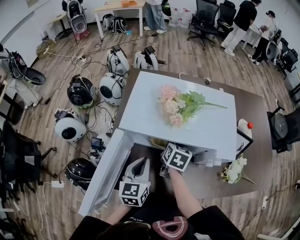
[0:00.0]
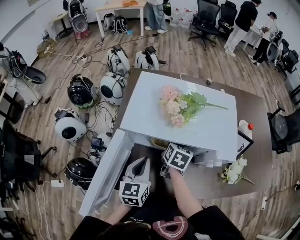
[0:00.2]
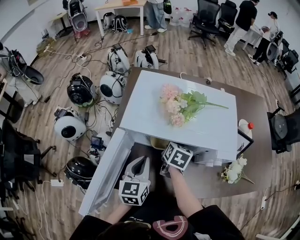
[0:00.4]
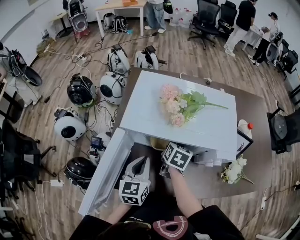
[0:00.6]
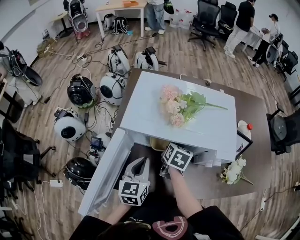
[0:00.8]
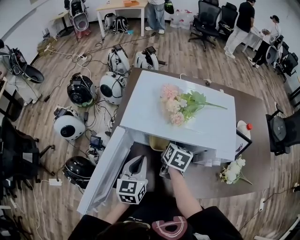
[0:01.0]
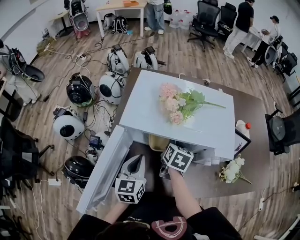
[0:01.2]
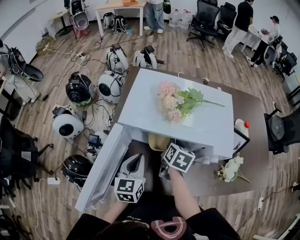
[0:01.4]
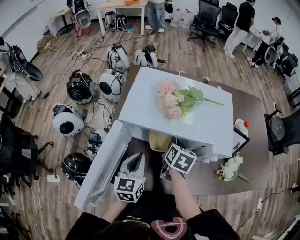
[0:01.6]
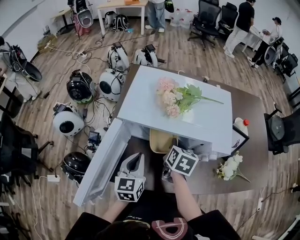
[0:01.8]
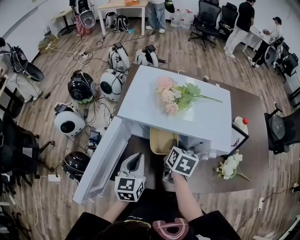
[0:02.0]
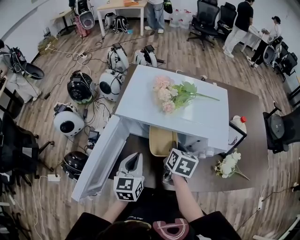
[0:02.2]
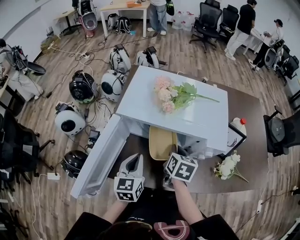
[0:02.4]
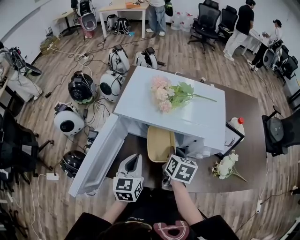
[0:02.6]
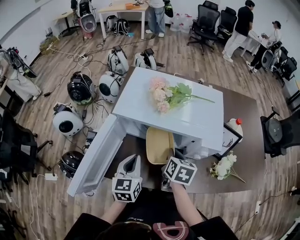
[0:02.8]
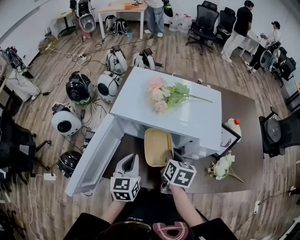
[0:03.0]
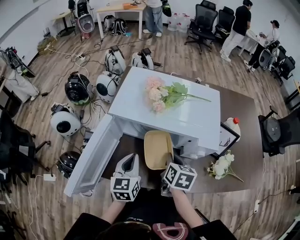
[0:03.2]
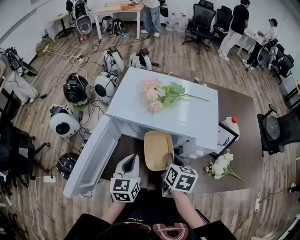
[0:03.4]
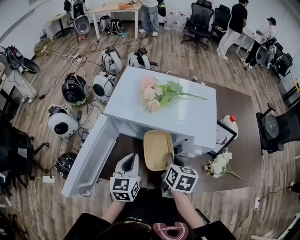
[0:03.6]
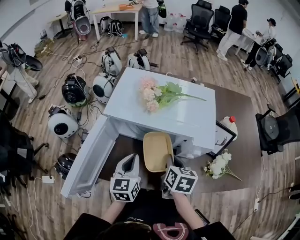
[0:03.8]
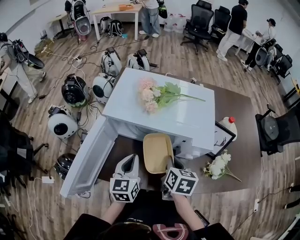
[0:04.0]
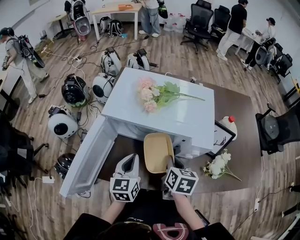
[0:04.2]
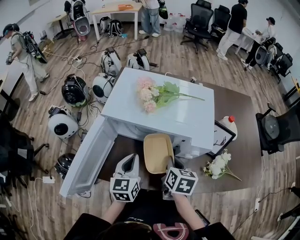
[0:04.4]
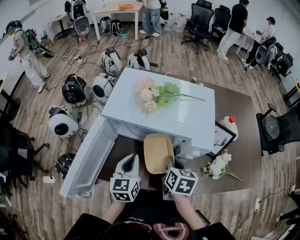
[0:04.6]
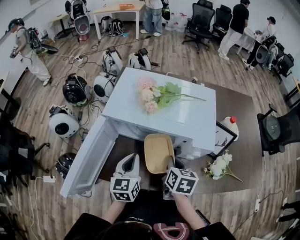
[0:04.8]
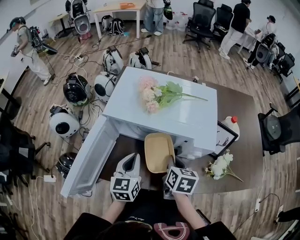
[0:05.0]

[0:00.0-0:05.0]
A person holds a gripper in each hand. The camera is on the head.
0:00.0 to 0:01.6: The grippers stay close to where they were, moving slightly.
0:01.6 to 0:03.4: The right gripper shifts roughly 10 cm backward and to the right.
0:03.4 to 0:05.0: The grippers stay close to where they were, moving slightly.

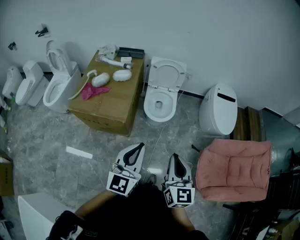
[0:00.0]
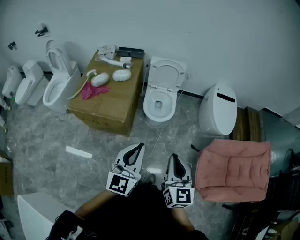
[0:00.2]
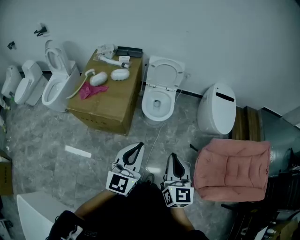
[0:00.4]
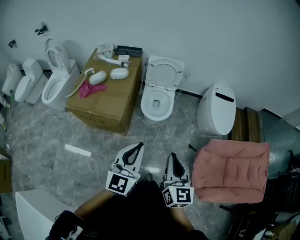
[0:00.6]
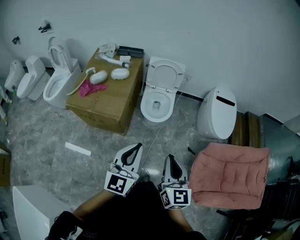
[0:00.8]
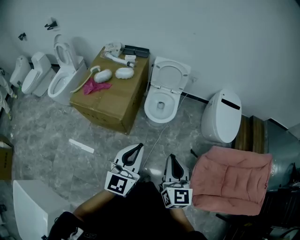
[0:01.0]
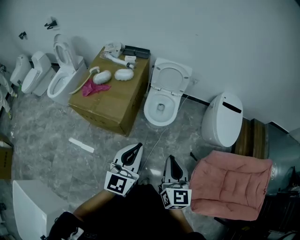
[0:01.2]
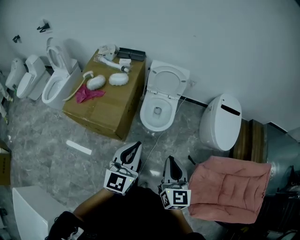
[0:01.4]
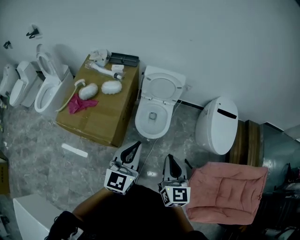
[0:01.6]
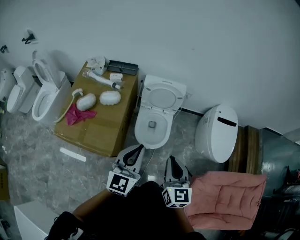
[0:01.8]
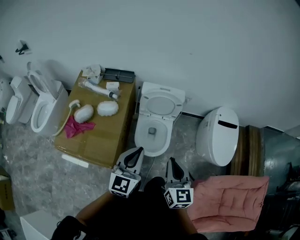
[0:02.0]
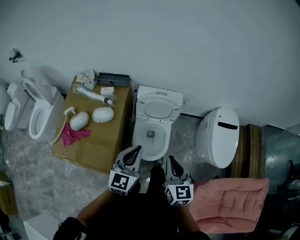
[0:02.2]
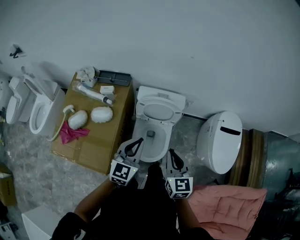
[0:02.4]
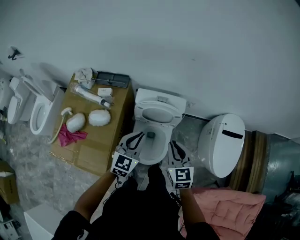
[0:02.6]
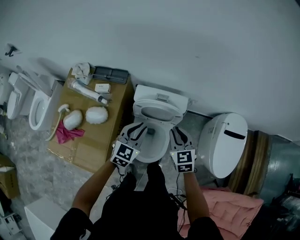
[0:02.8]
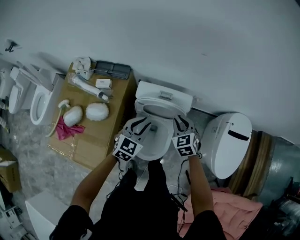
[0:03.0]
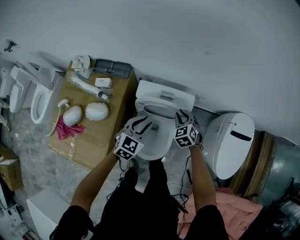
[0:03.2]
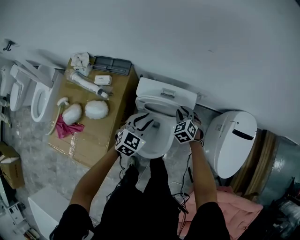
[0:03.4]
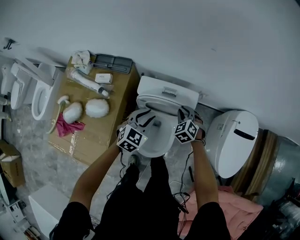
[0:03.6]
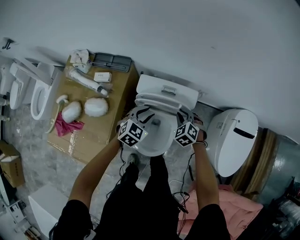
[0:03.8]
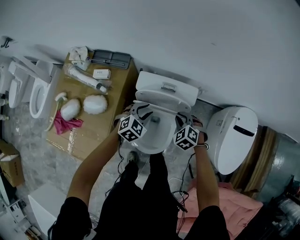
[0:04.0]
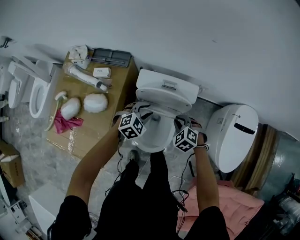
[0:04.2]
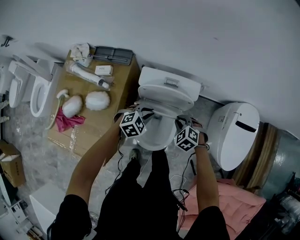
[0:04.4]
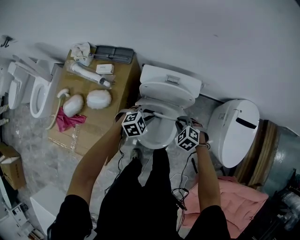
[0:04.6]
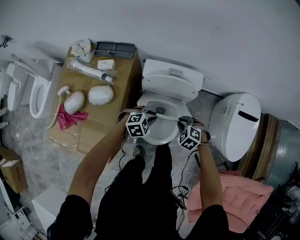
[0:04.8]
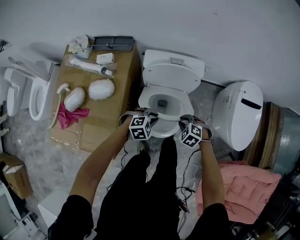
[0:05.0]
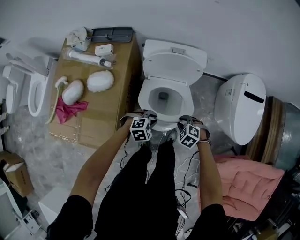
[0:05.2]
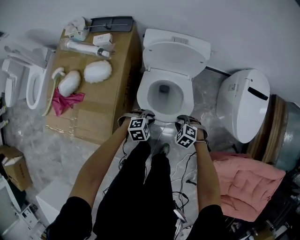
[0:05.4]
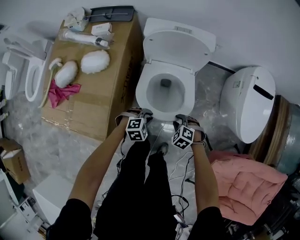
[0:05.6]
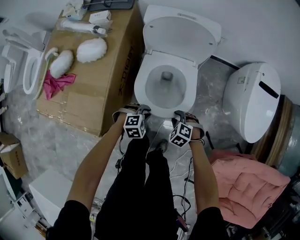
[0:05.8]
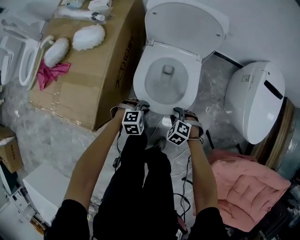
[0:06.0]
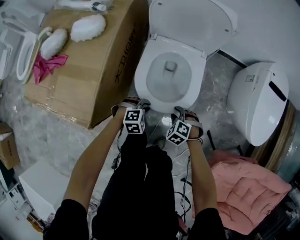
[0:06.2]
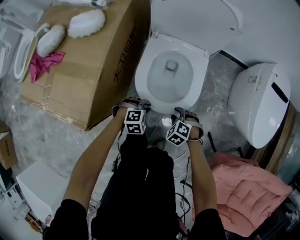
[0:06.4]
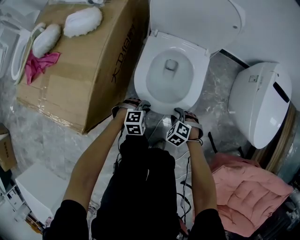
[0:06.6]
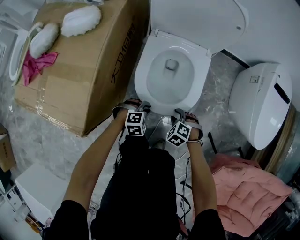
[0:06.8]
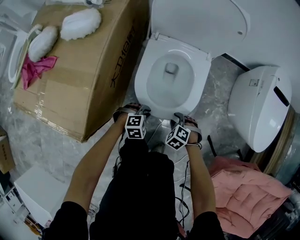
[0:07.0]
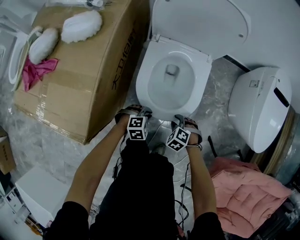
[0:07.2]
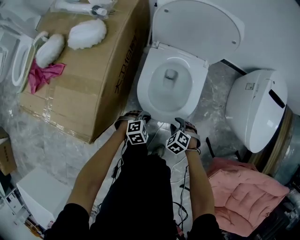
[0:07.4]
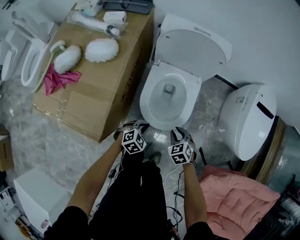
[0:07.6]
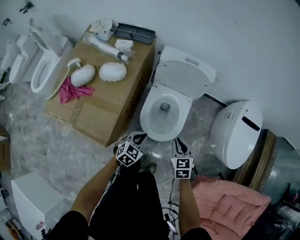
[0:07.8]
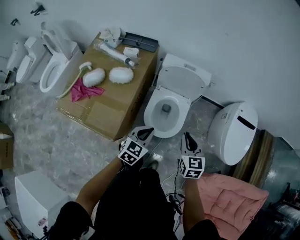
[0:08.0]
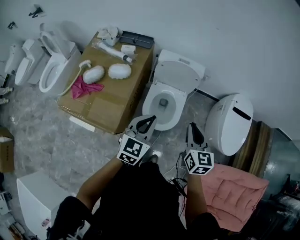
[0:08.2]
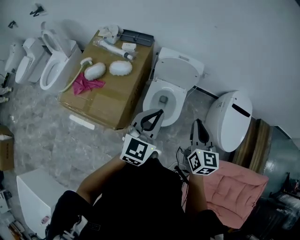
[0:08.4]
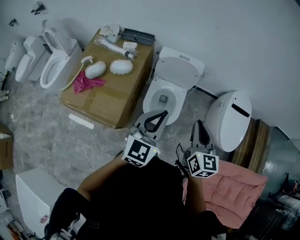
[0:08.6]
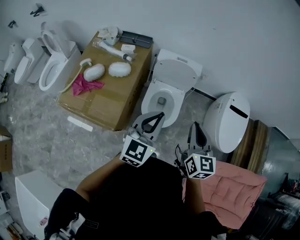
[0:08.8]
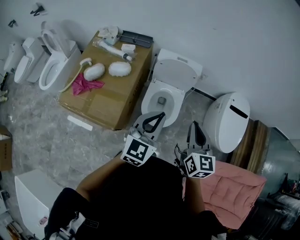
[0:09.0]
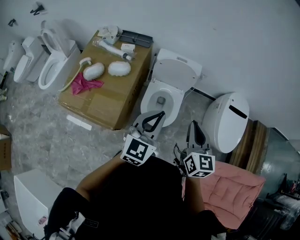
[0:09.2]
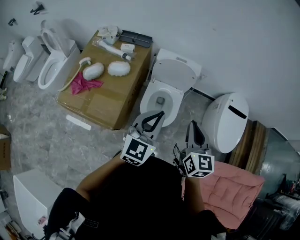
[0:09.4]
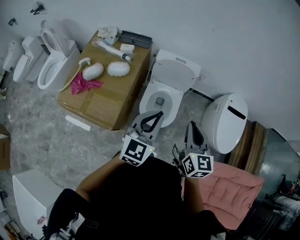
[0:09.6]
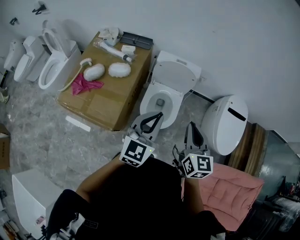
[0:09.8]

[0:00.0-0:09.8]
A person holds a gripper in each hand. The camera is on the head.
0:00.0 to 0:01.4: The grippers both shift forward and to the right by about 15 cm.
0:01.4 to 0:02.8: The two grippers travel together, forward, some 60 cm. The right gripper rotates some 30 degrees. Meanwhile the left gripper swivels approximately 20 degrees.
0:02.8 to 0:04.2: Both grippers move downward, roughly 20 cm. The right gripper changes its angle by approximately 40 degrees, while the left gripper rotates roughly 30 degrees, and opens its fingers.
0:04.2 to 0:05.6: The right gripper moves approximately 35 cm; the left gripper changes place by some 35 cm, and changes its angle by about 20 degrees.
0:05.6 to 0:07.0: Both grippers travel together downward, approximately 20 cm.
0:07.0 to 0:08.4: Both grippers travel together upward, roughly 70 cm. The right gripper tilts its fingers roughly 60 degrees upward, and closes up. The left gripper tilts its fingers approximately 50 degrees upward.
0:08.4 to 0:09.8: There are only small adjustments of the grippers.

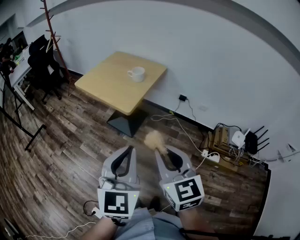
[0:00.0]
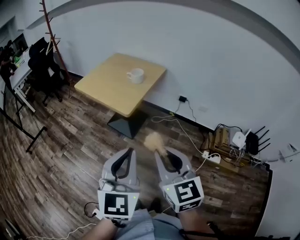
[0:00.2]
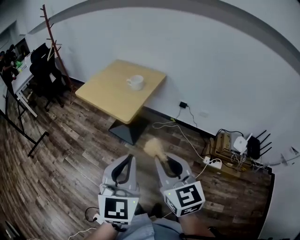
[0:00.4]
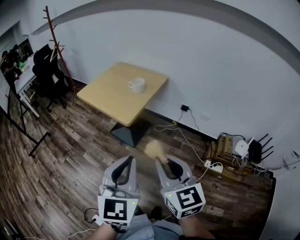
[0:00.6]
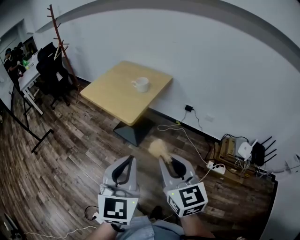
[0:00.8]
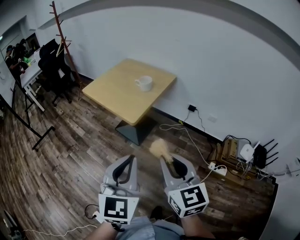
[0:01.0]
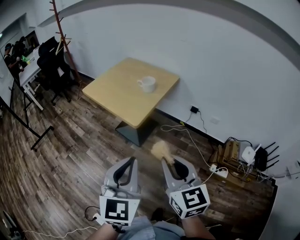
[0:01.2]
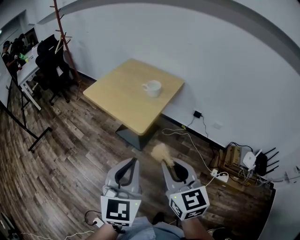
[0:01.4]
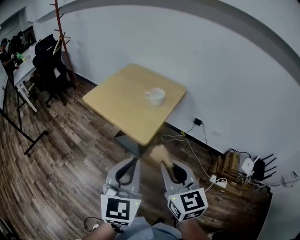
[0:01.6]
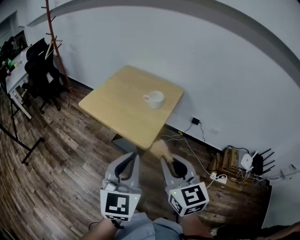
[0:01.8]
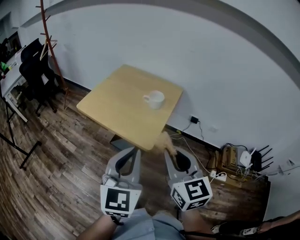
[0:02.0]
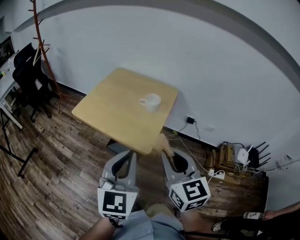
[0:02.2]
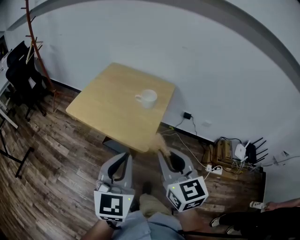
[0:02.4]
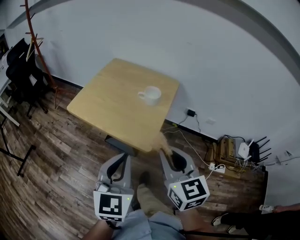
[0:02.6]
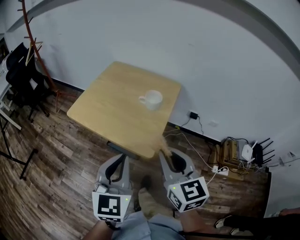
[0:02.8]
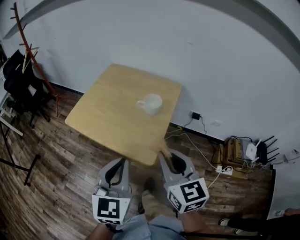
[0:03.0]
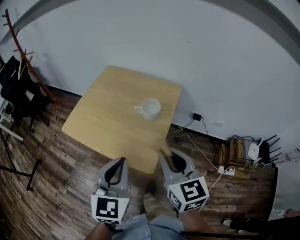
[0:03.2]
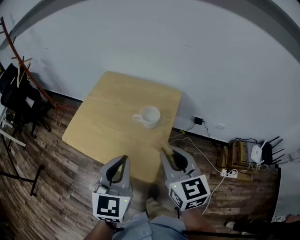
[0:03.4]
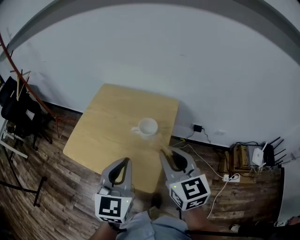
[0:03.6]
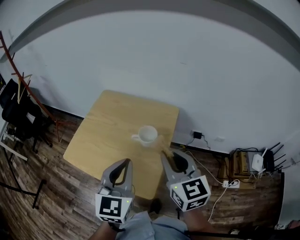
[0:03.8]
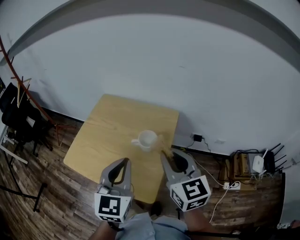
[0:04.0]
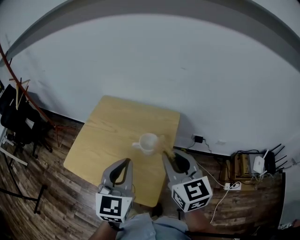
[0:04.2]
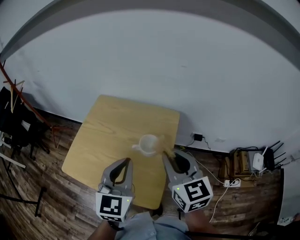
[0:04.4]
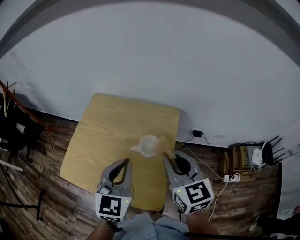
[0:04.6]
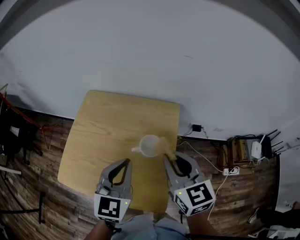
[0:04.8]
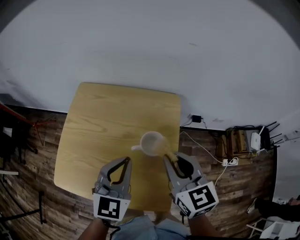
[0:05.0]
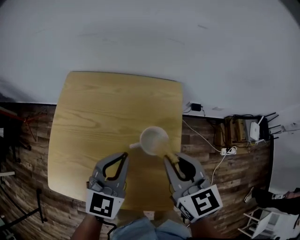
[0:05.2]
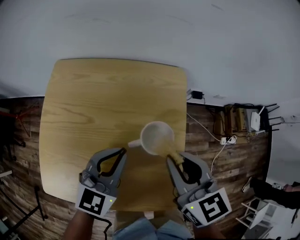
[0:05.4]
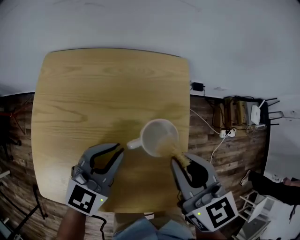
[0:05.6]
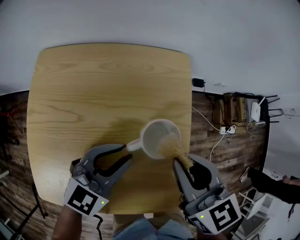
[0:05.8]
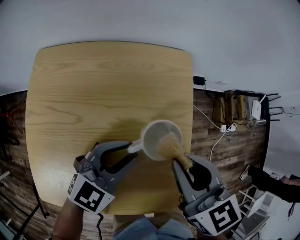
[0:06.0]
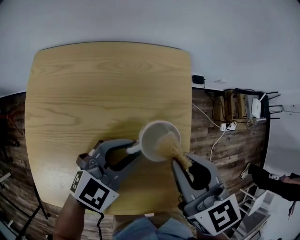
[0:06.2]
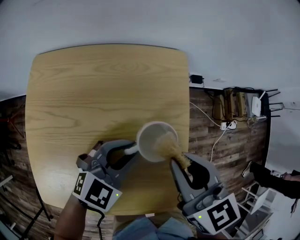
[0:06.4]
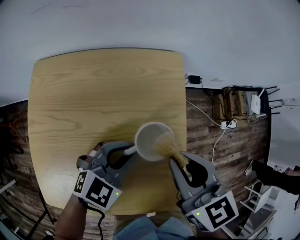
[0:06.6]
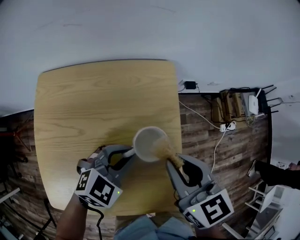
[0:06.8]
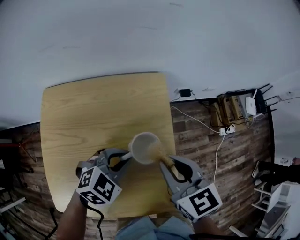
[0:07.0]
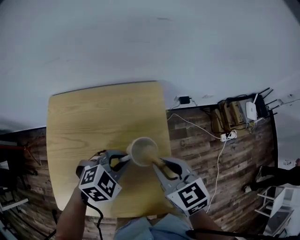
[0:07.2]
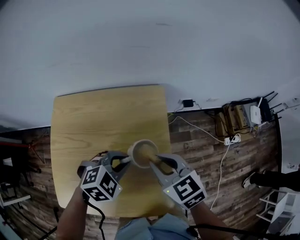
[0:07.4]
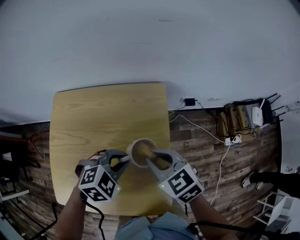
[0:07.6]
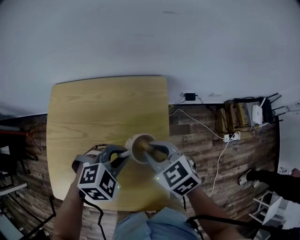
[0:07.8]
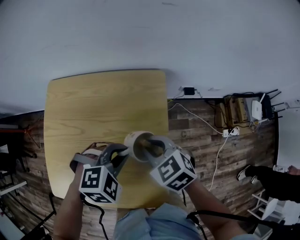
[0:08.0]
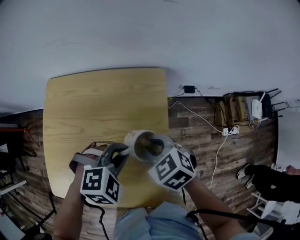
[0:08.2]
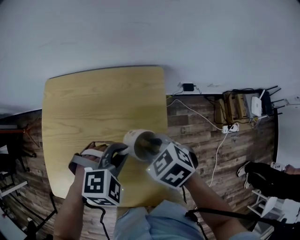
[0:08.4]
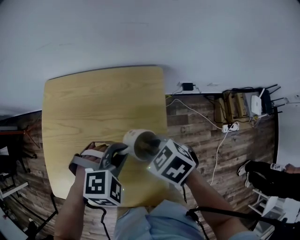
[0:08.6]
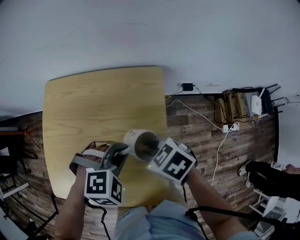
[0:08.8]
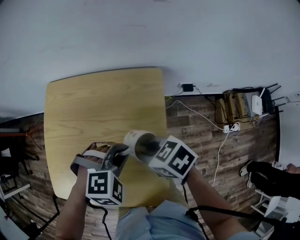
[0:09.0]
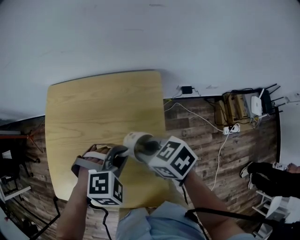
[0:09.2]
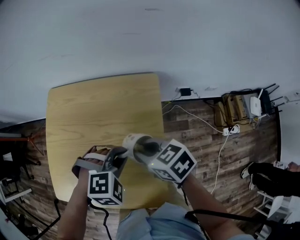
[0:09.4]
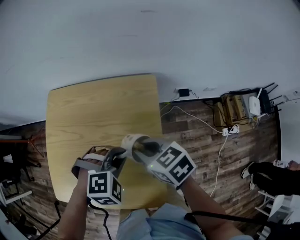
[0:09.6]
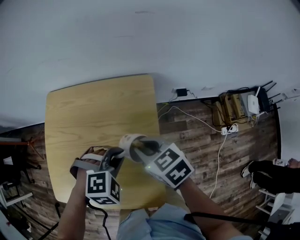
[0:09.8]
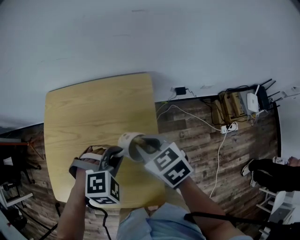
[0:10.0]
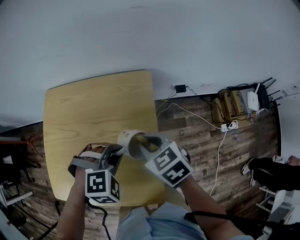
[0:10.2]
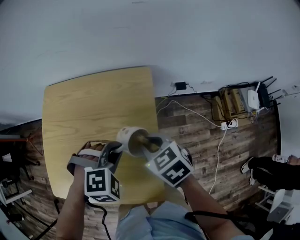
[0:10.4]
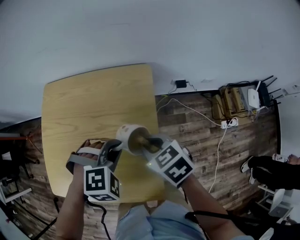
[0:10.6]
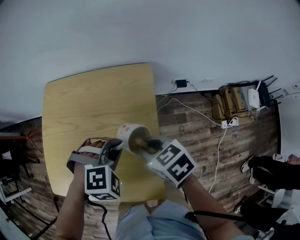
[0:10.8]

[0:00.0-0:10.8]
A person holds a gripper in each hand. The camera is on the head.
0:00.0 to 0:01.6: The left gripper goes approximately 20 cm forward and to the left. The right gripper shifts roughly 15 cm forward.
0:01.6 to 0:03.0: The left gripper is displaced forward and to the left by roughly 20 cm; the right gripper heads forward, covering some 20 cm.
0:03.0 to 0:04.6: Both grippers move forward, approximately 25 cm.
0:04.6 to 0:06.2: The right gripper travels downward by approximately 15 cm, while the left gripper moves downward, approximately 20 cm, turns by about 50 degrees, and opens.
0:06.2 to 0:07.8: The left gripper tilts its fingers some 30 degrees downward. Meanwhile the right gripper ends up approximately 5 cm from where it was, and turns by approximately 30 degrees.
0:07.8 to 0:09.2: The right gripper swivels roughly 20 degrees.
